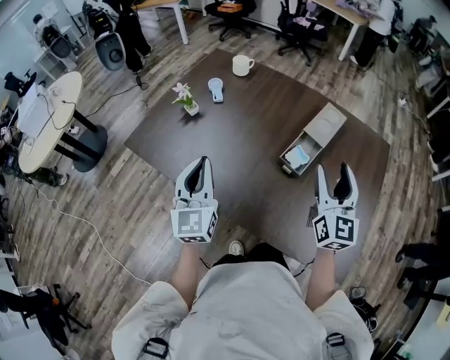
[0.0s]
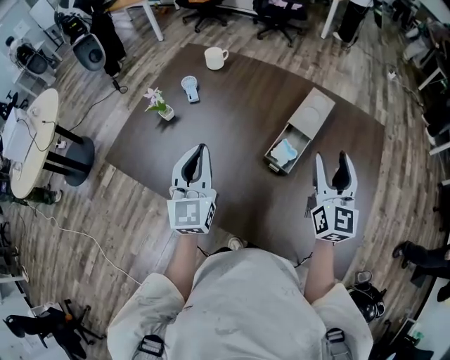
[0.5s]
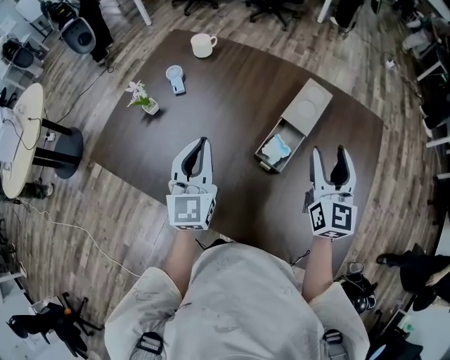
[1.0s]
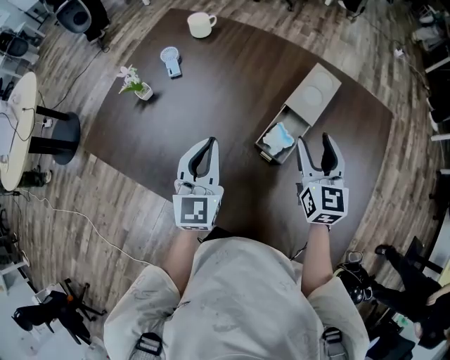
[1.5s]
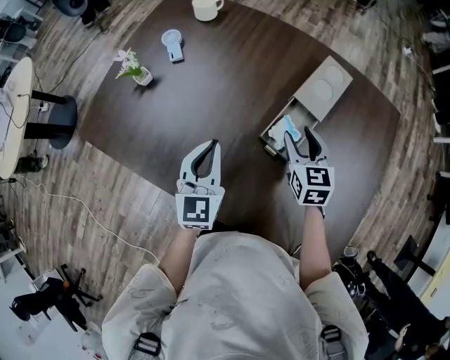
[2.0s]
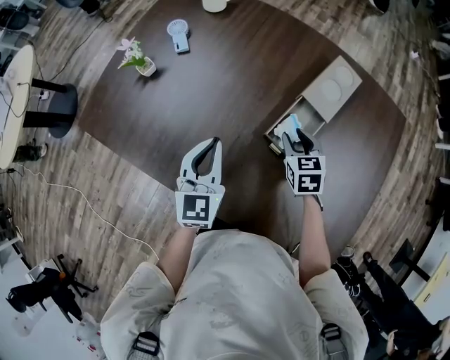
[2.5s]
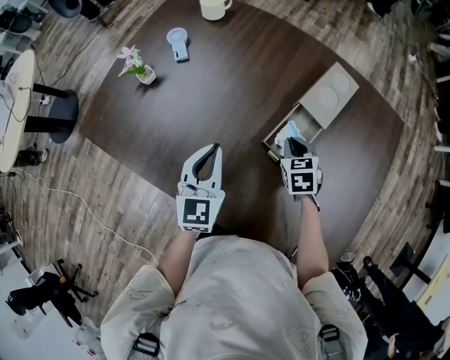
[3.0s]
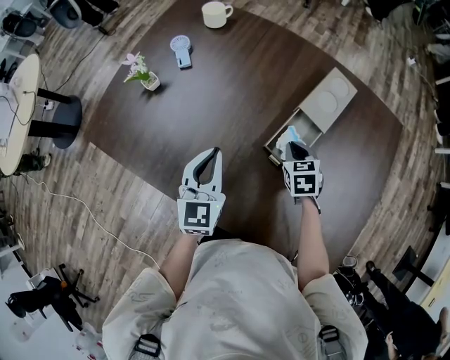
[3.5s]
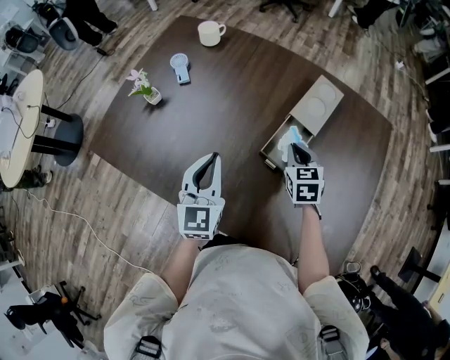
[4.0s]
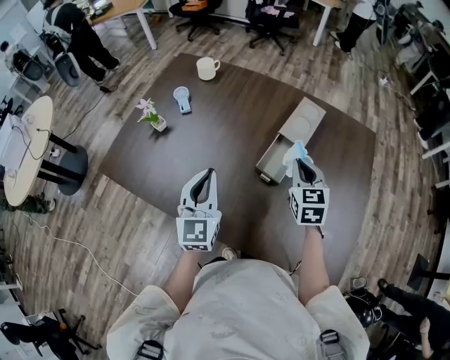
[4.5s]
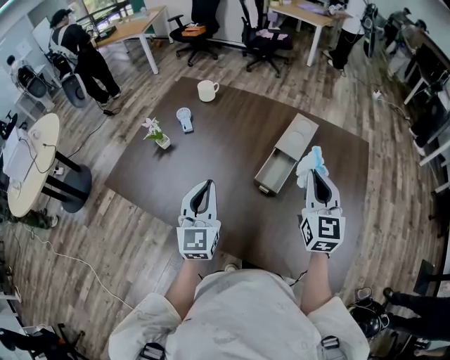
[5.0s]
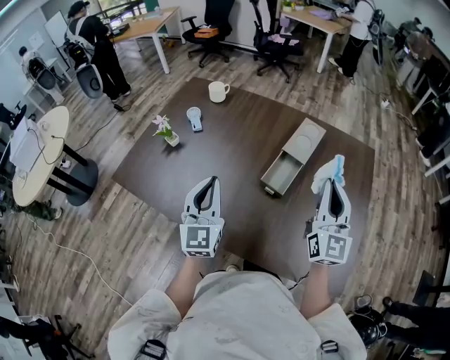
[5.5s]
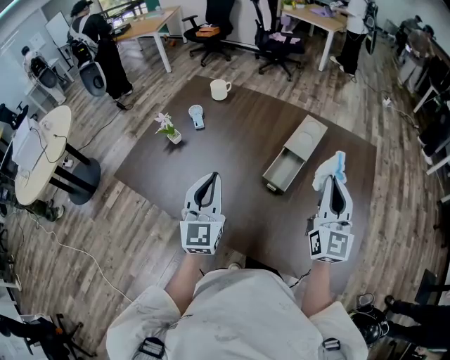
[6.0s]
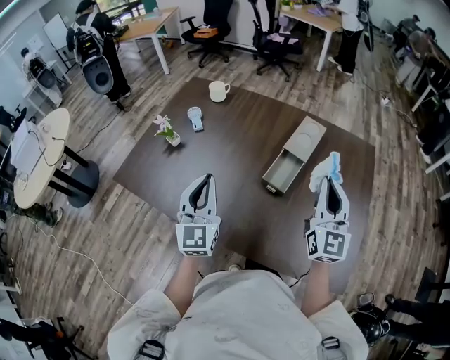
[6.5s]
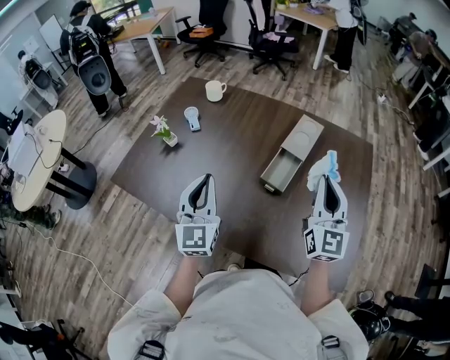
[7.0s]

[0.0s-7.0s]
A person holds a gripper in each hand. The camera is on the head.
0.0s to 2.0s: The left gripper goes roughly 20 cm downward, to the right and forward. The right gripper moves downward and forward, roughly 25 cm, and angles its fingers downward, by some 30 degrees.
2.0s to 3.5s: The right gripper goes roughly 10 cm downward, changes its angle by about 20 degrees, and closes.
3.5s to 5.0s: The left gripper travels upward and backward by approximately 15 cm, while the right gripper moves upward and backward, roughly 30 cm, and angles its fingers upward, by some 50 degrees.
5.0s to 7.0s: There are only small adjustments of the grippers.

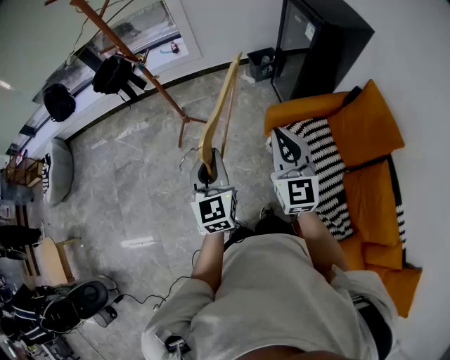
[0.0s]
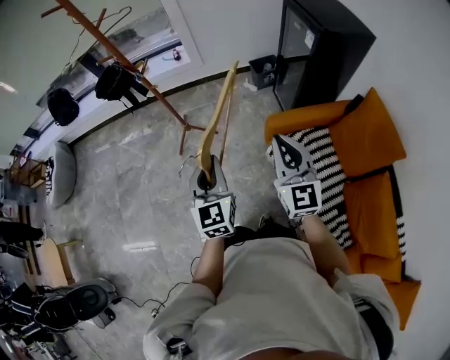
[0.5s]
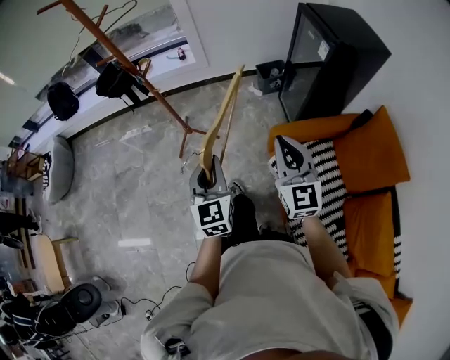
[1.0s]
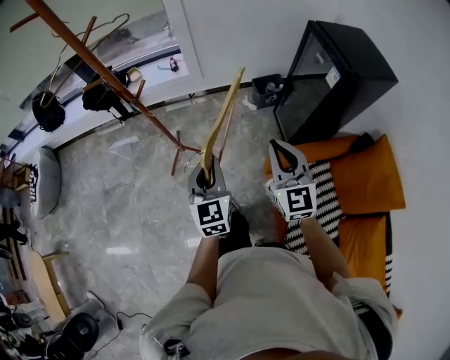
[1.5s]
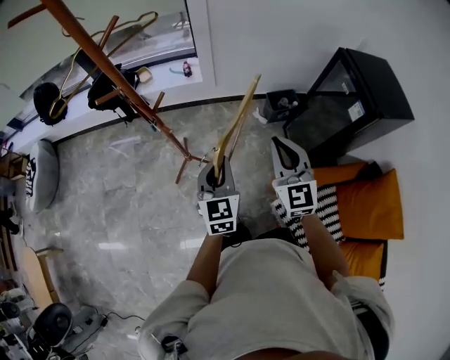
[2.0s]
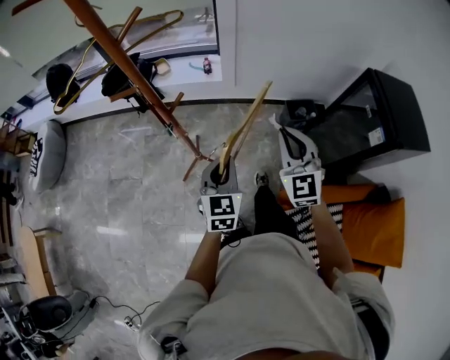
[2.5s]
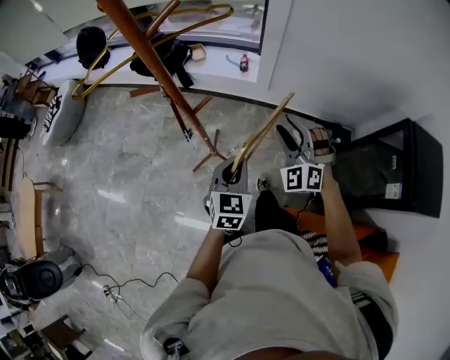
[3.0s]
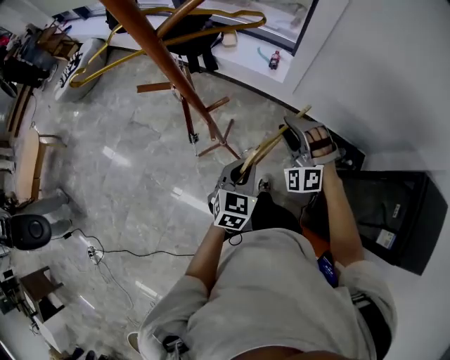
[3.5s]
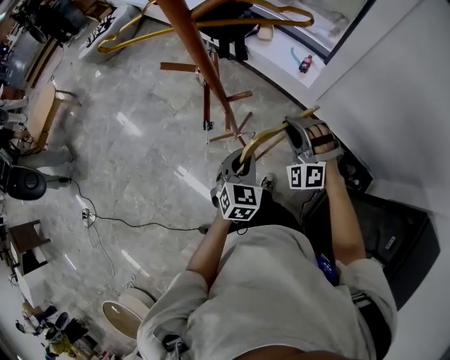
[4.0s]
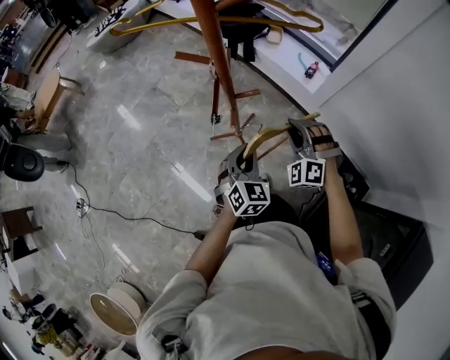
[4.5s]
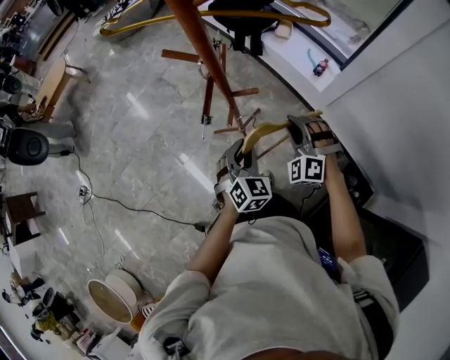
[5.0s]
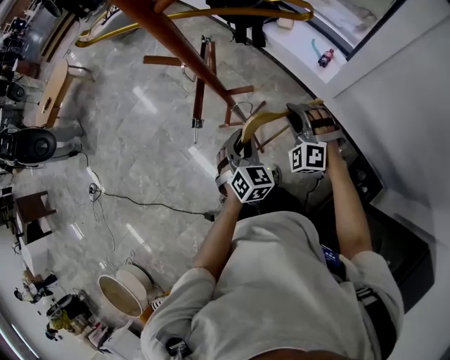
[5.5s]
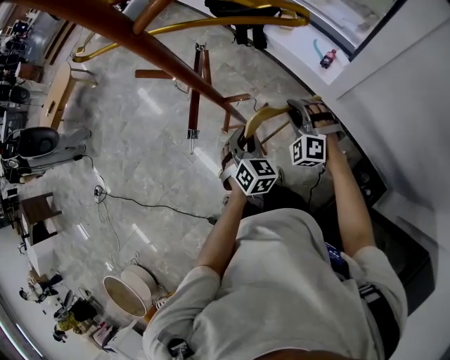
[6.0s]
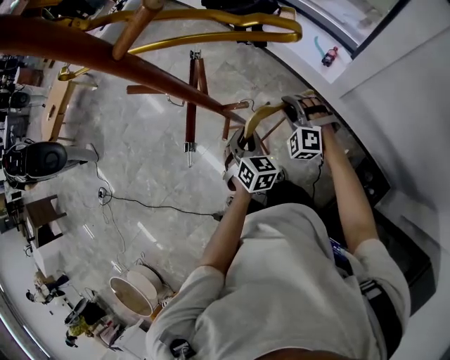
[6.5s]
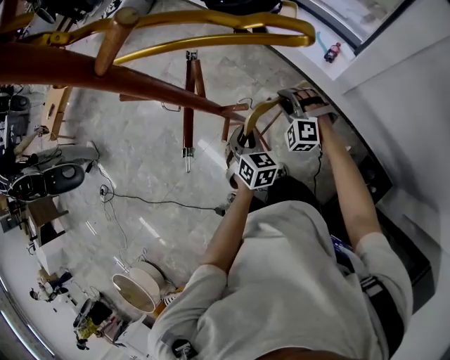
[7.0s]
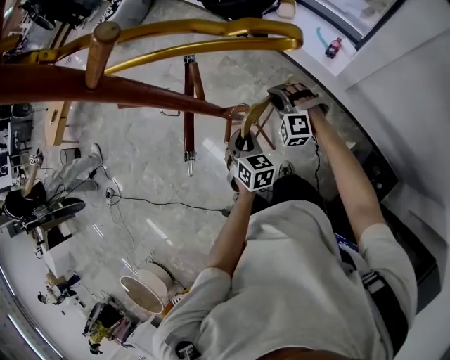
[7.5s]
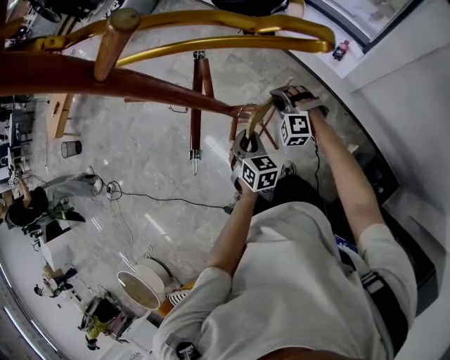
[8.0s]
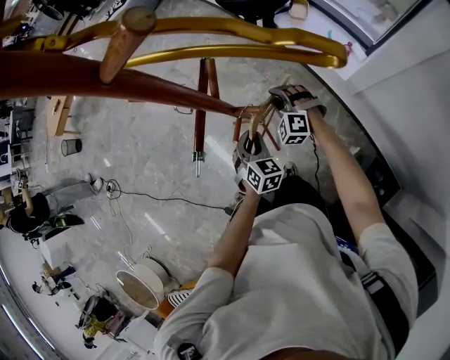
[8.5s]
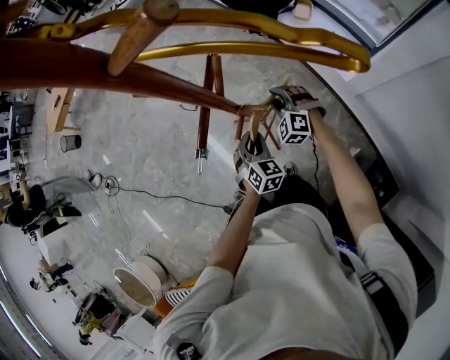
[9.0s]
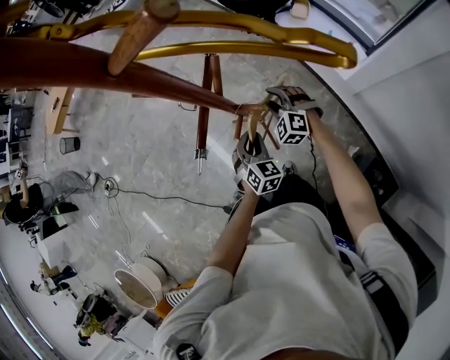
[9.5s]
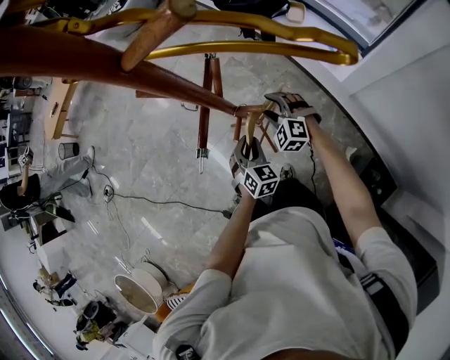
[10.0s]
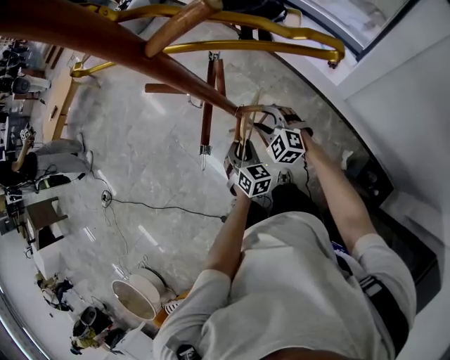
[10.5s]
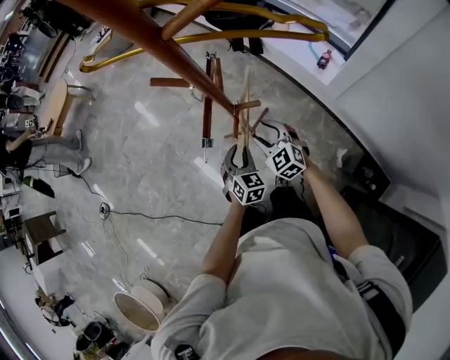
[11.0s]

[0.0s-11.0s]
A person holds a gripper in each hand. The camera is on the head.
0.0s to 2.0s: Both grippers travel together forward, approximately 40 cm.
2.0s to 3.5s: The right gripper is displaced forward by approximately 30 cm, twists approximately 60 degrees counterclockwise, seen from behind, and opens. Meanwhile the left gripper heads forward and downward, covering some 20 cm, and rotates approximately 20 degrees.
3.5s to 5.5s: The left gripper changes place by roughly 15 cm, and changes its angle by approximately 40 degrees. The right gripper moves downward, about 10 cm, swivels about 20 degrees, and closes its fingers.
5.5s to 7.5s: The left gripper goes roughly 10 cm downward and forward, while the right gripper is displaced forward and downward by approximately 15 cm.
7.5s to 9.0s: The right gripper moves about 5 cm.
9.0s to 11.0s: The right gripper travels backward, upward and to the left by roughly 15 cm, rotates approximately 30 degrees, and opens. The left gripper heads to the left, covering approximately 5 cm.

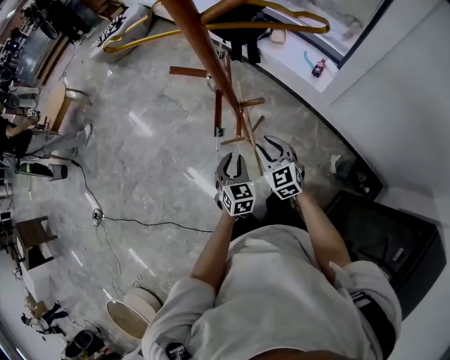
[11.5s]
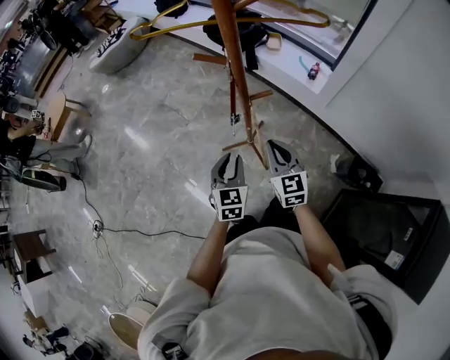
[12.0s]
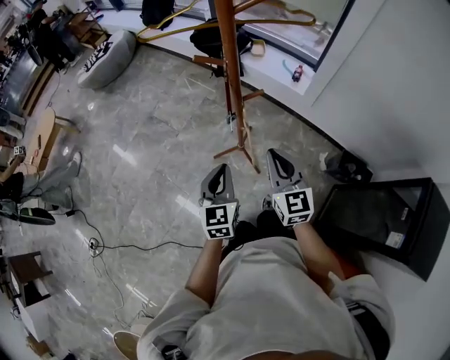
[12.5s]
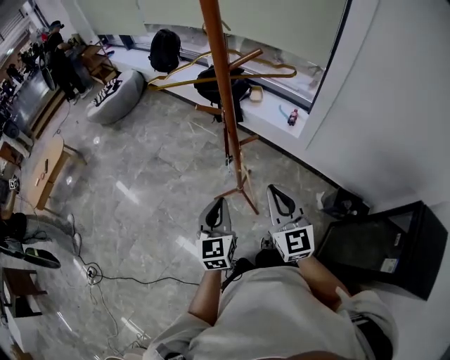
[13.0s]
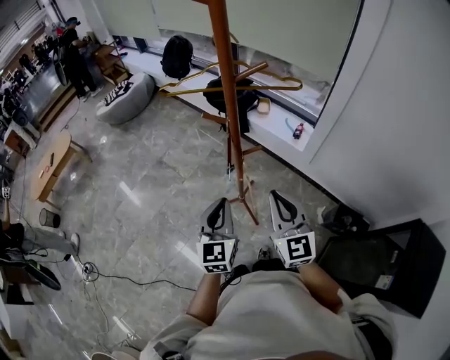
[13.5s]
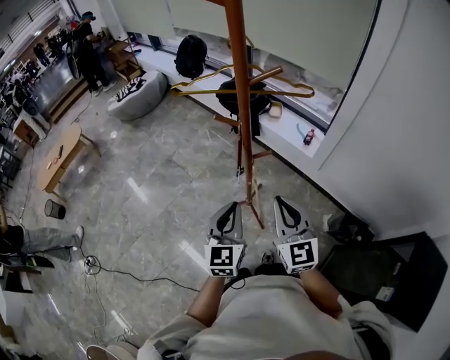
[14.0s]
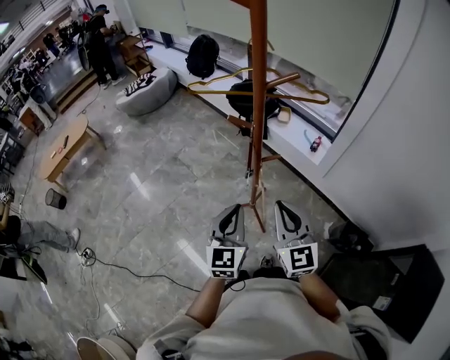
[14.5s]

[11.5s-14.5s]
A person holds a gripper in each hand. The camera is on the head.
11.5s to 13.0s: Both grippers travel together upward and backward, about 25 cm. The left gripper changes its angle by about 30 degrees, and closes, while the right gripper turns by approximately 30 degrees, and closes up.
13.0s to 14.5s: The grippers move only a little.

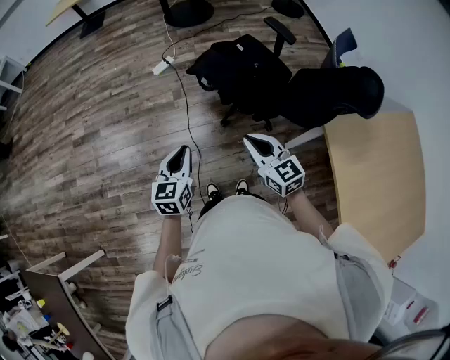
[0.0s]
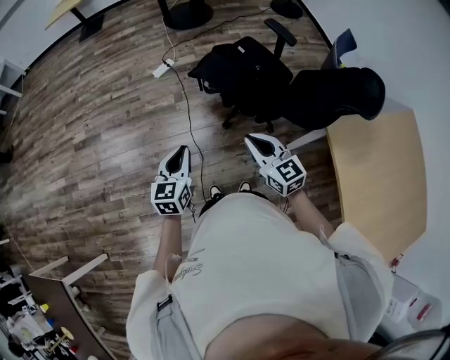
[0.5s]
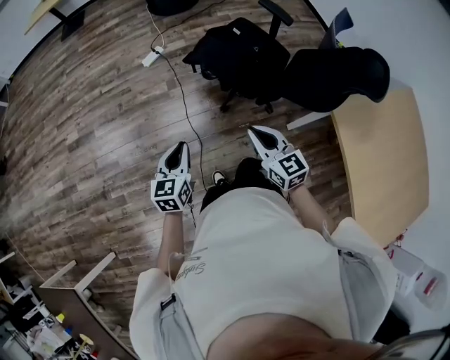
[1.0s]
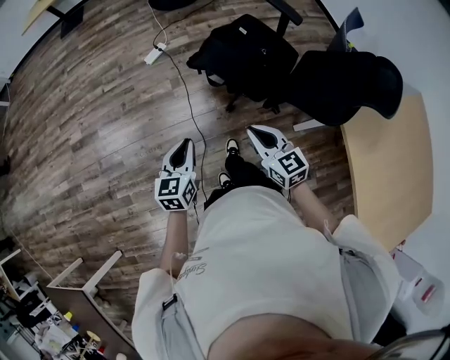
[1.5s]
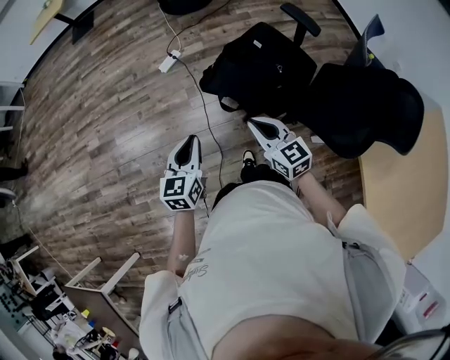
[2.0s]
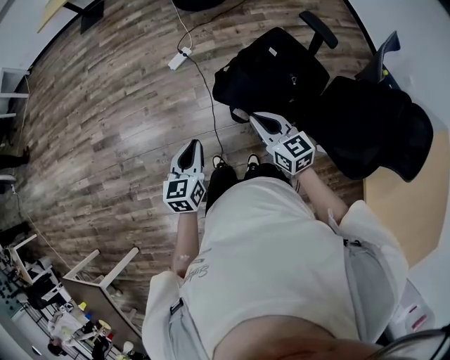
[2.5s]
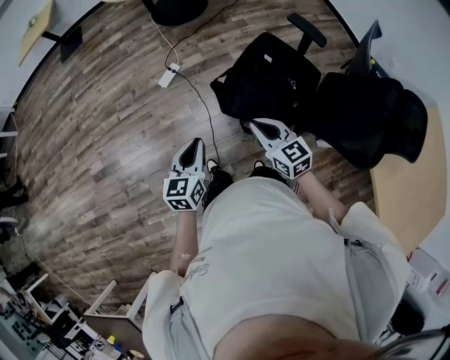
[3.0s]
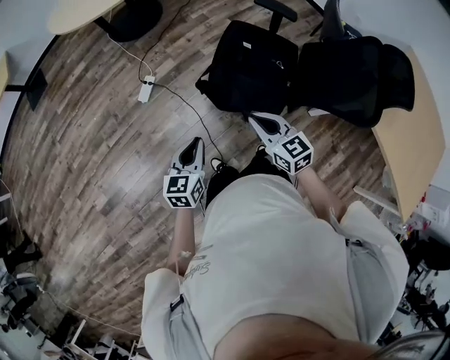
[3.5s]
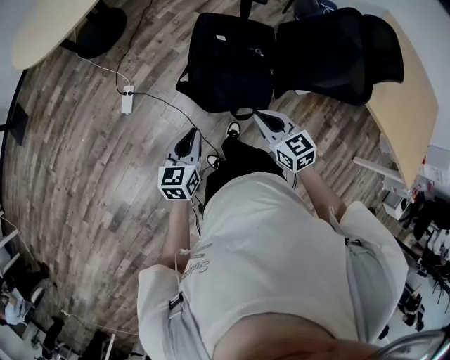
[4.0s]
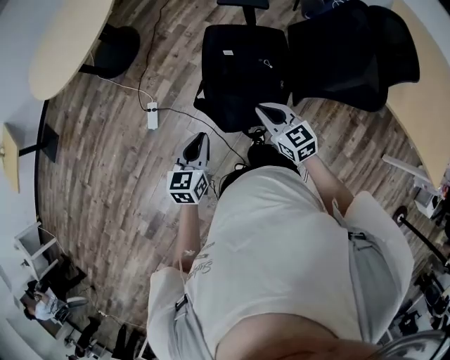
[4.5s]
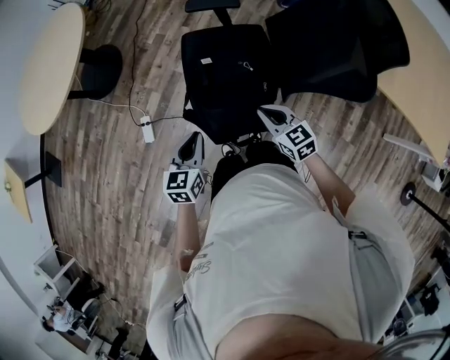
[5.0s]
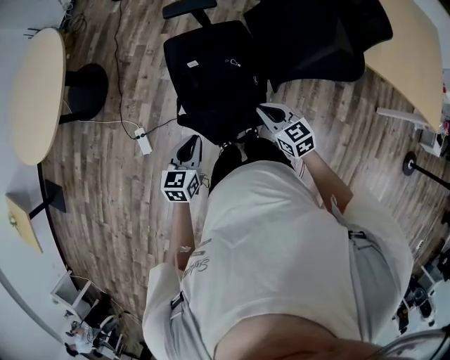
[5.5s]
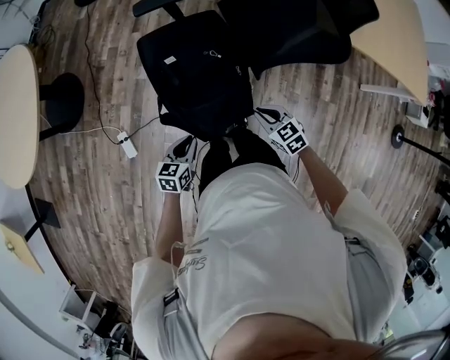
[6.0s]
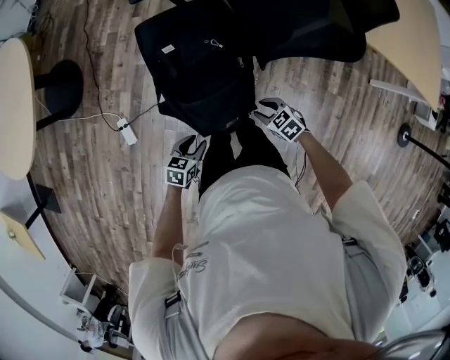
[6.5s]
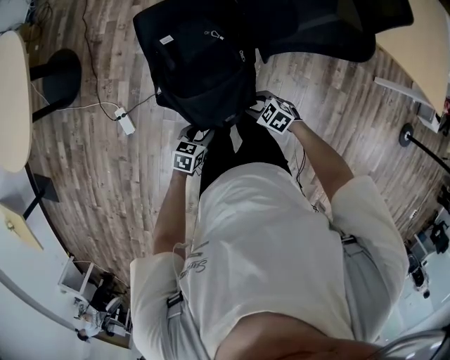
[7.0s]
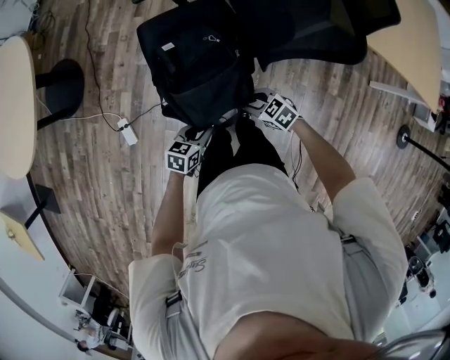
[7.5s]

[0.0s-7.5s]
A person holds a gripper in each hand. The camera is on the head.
0.0s to 2.0s: Both grippers move forward, about 20 cm.
2.0s to 4.0s: The right gripper moves some 10 cm, and changes its angle by about 40 degrees, while the left gripper moves approximately 20 cm, and changes its angle by approximately 40 degrees.
4.0s to 5.5s: The left gripper goes some 15 cm forward and to the right, and turns by some 30 degrees. Meanwhile the right gripper moves forward, to the right and downward, roughly 15 cm.
5.5s to 7.5s: The grippers both shift downward by about 15 cm. The left gripper changes its angle by roughly 30 degrees. The right gripper turns by roughly 30 degrees, and opens up.
